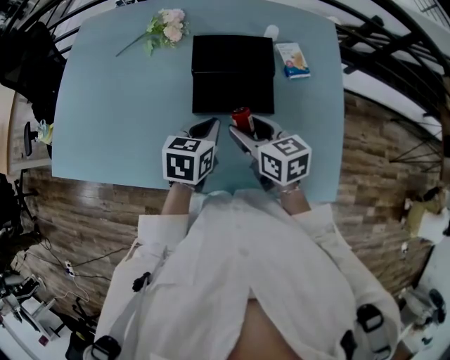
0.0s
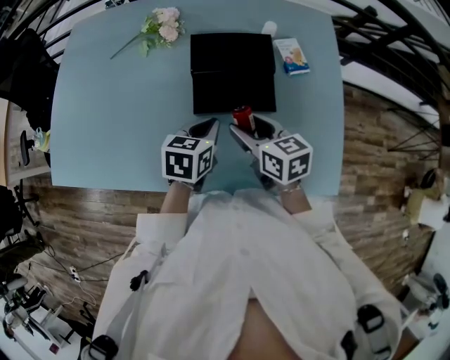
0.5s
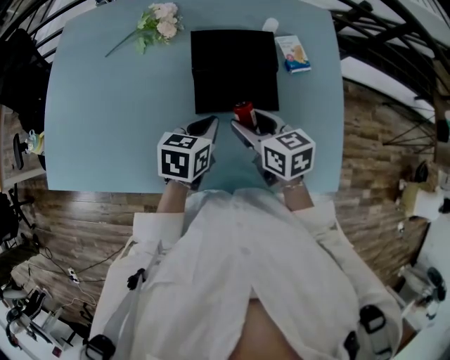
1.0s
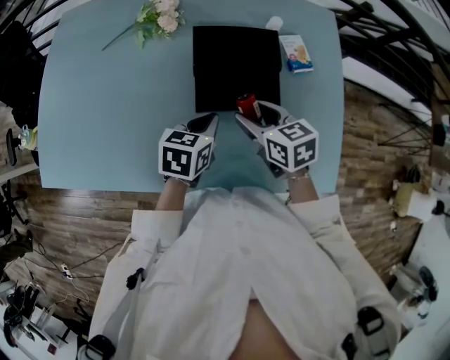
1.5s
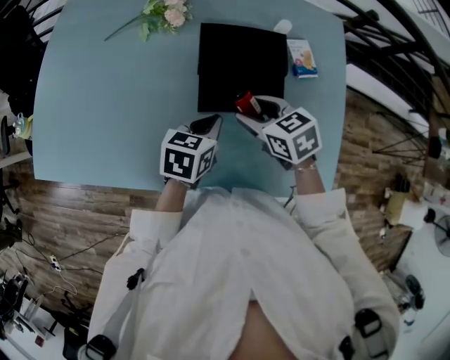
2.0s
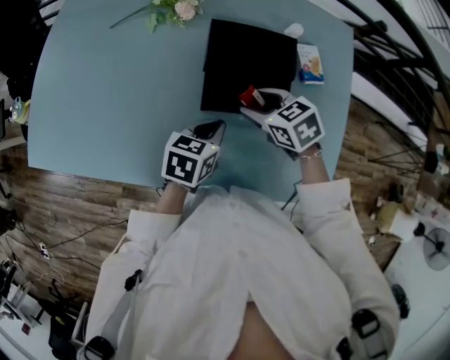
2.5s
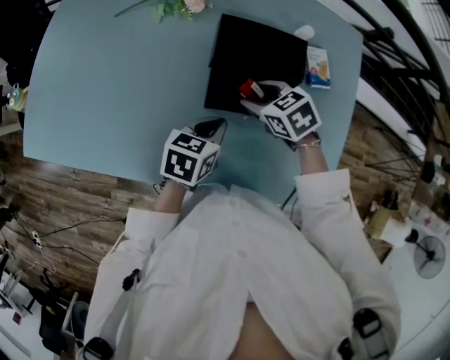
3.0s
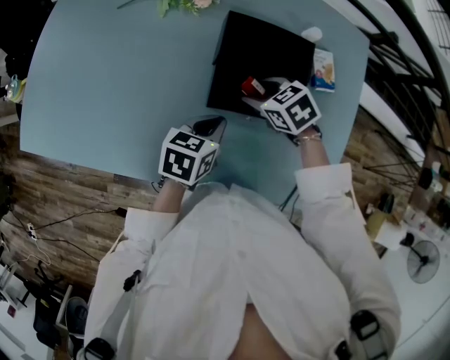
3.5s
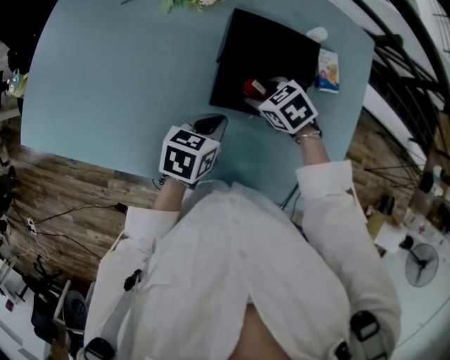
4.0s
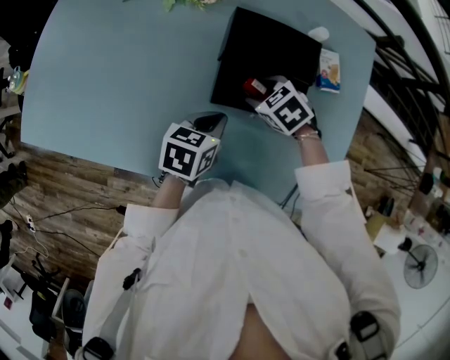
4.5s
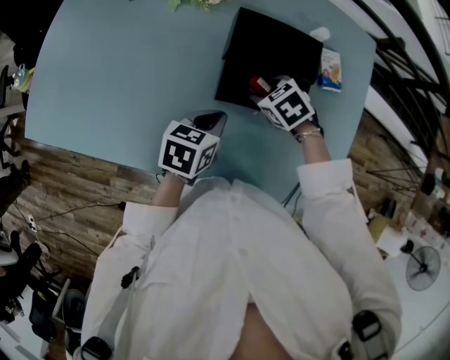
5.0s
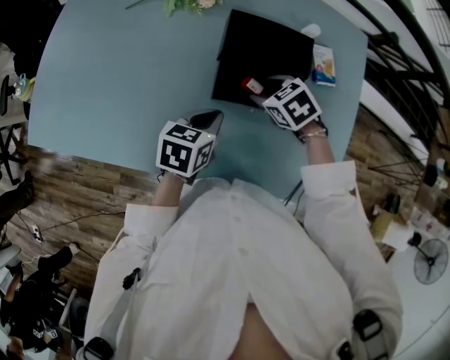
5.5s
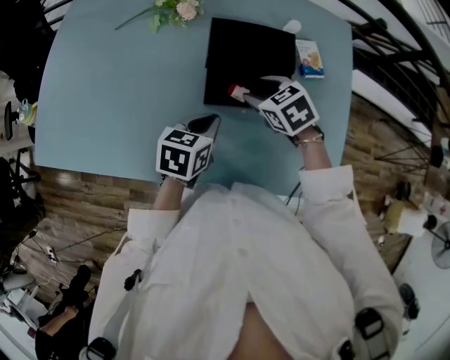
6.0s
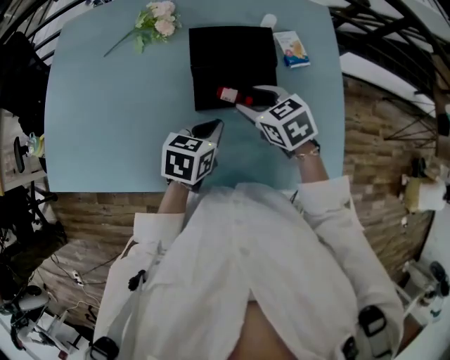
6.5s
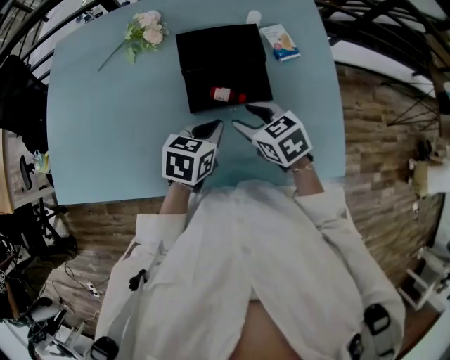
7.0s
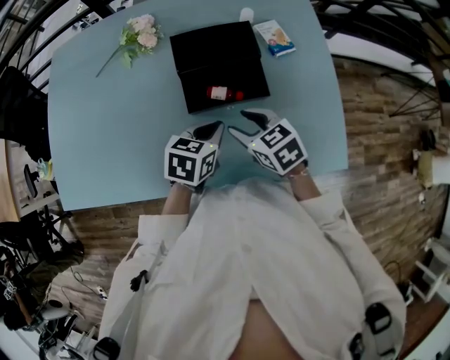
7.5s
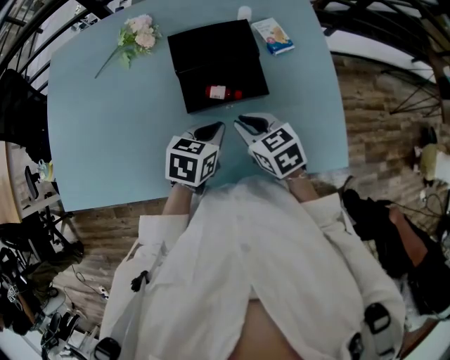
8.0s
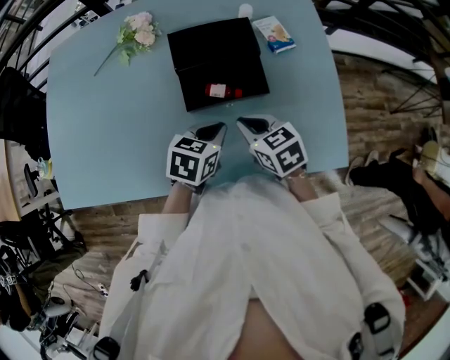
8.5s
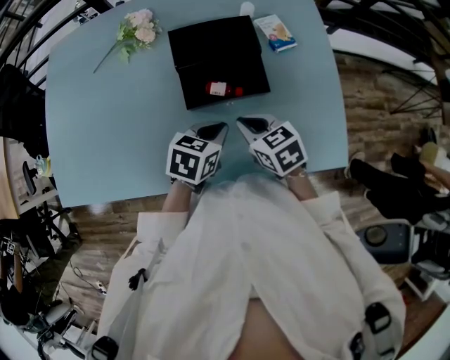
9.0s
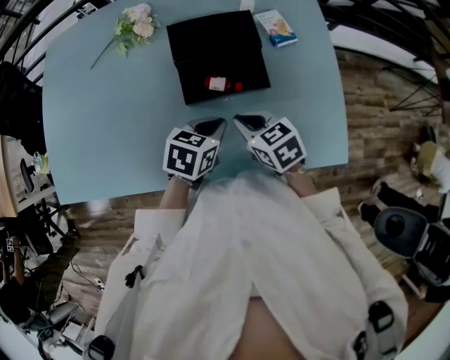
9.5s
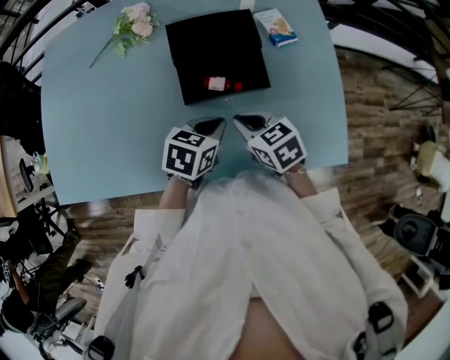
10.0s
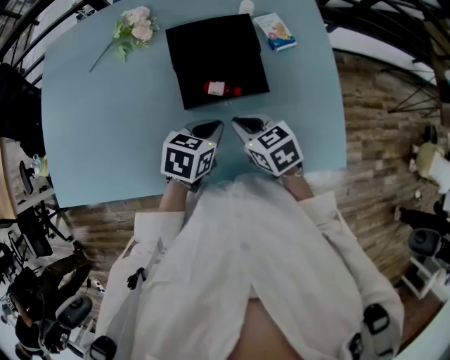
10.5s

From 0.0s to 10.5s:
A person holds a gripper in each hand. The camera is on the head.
From 0.0s to 2.0s: The right gripper shifts about 5 cm forward, and swivels some 30 degrees.
From 2.0s to 4.0s: The right gripper shifts about 10 cm downward and forward, and swivels some 30 degrees.
From 4.0s to 6.5s: The left gripper moves roughly 5 cm; the right gripper moves upward and backward, some 10 cm, and swivels about 30 degrees.
From 6.5s to 8.5s: The right gripper heads backward, covering approximately 10 cm, and closes.
From 8.5s to 10.5s: The grippers stay close to where they were, moving slightly.

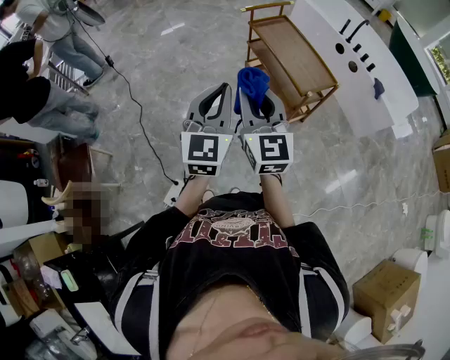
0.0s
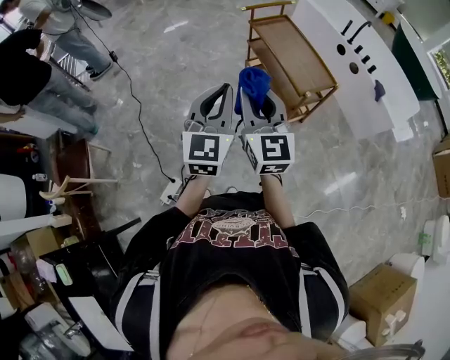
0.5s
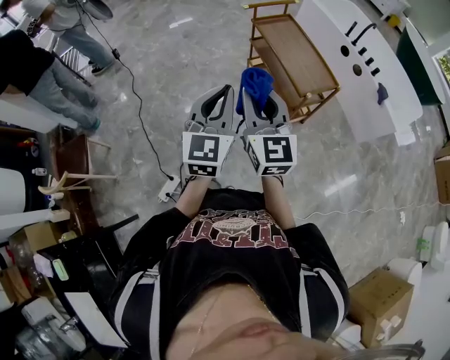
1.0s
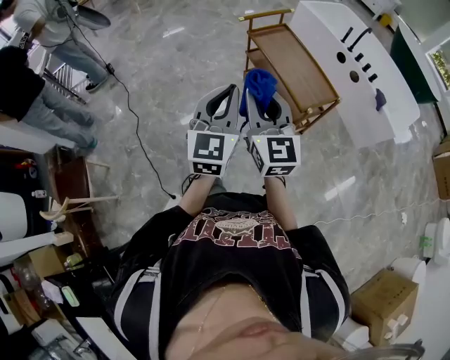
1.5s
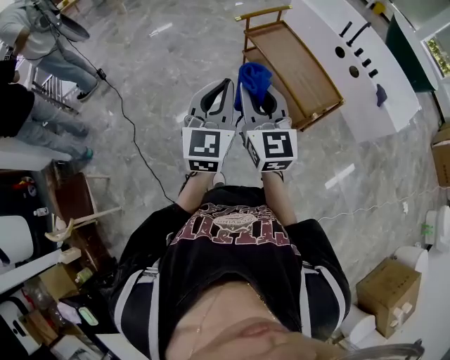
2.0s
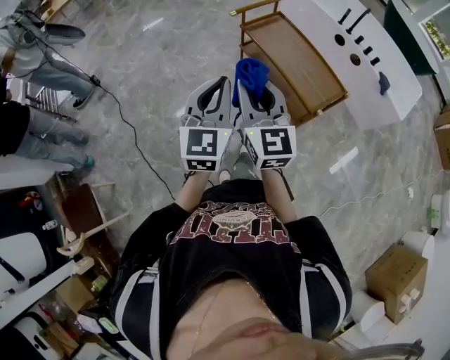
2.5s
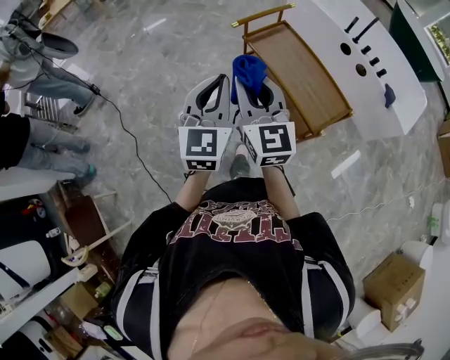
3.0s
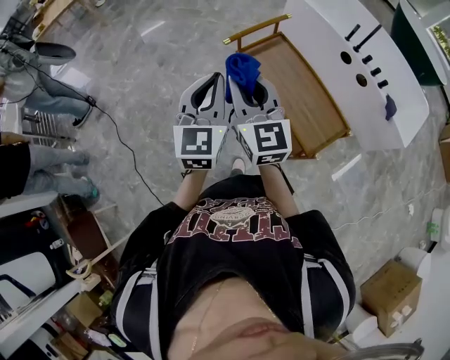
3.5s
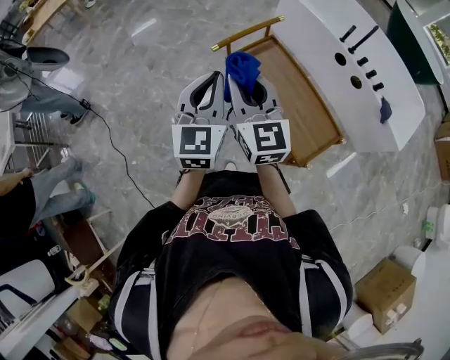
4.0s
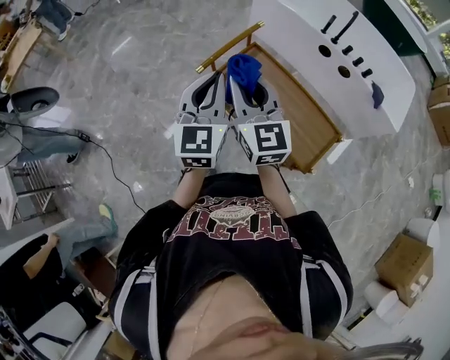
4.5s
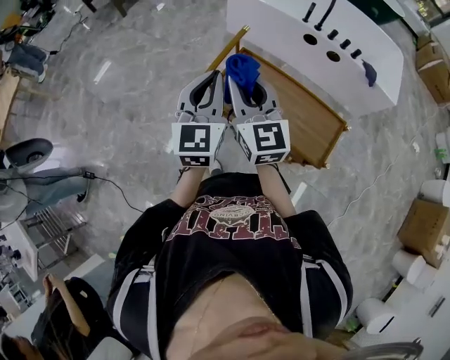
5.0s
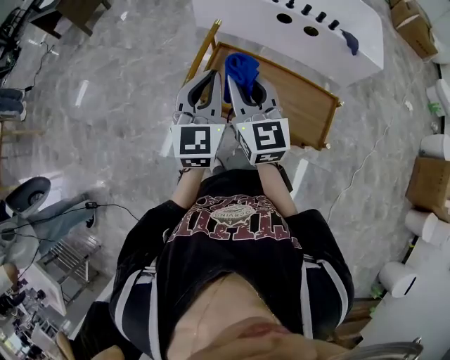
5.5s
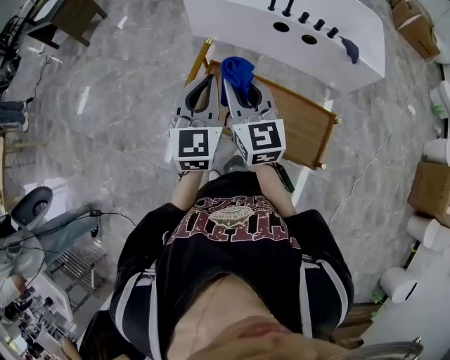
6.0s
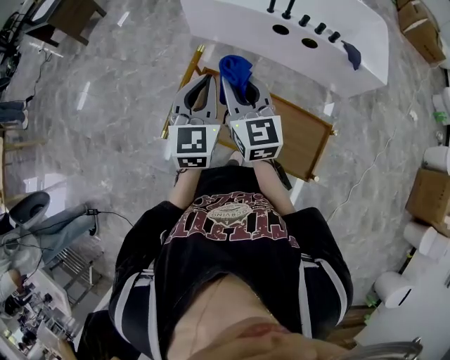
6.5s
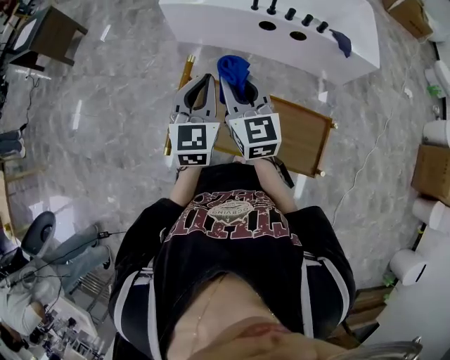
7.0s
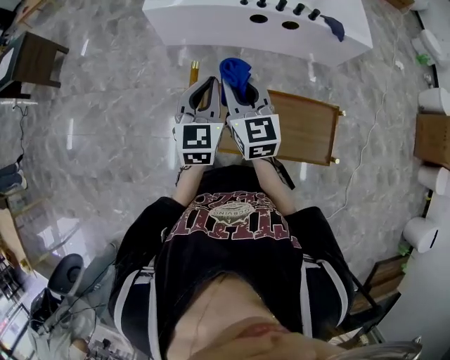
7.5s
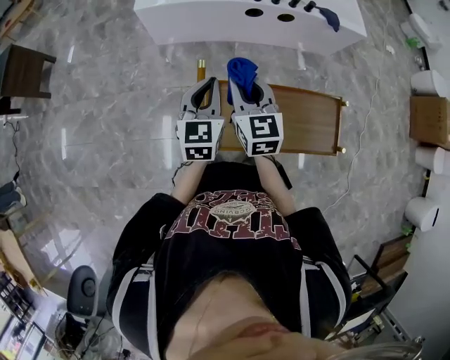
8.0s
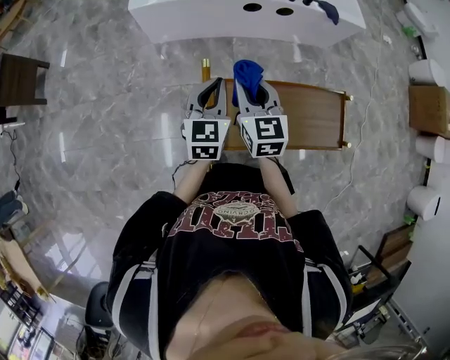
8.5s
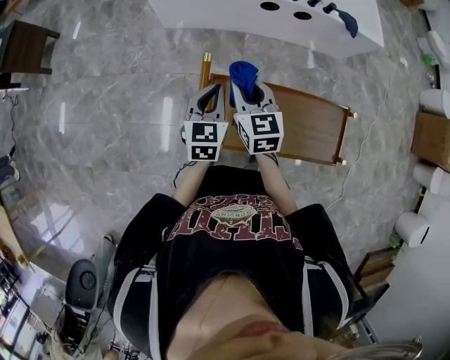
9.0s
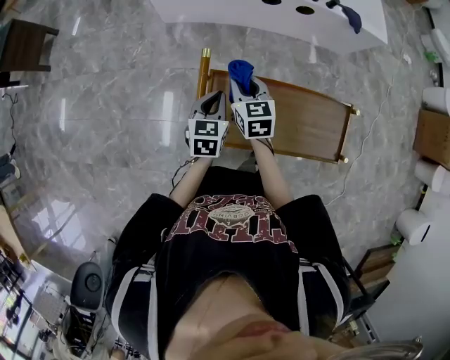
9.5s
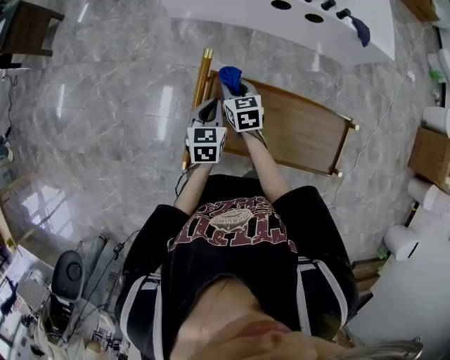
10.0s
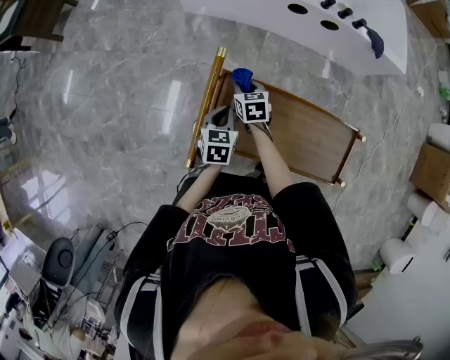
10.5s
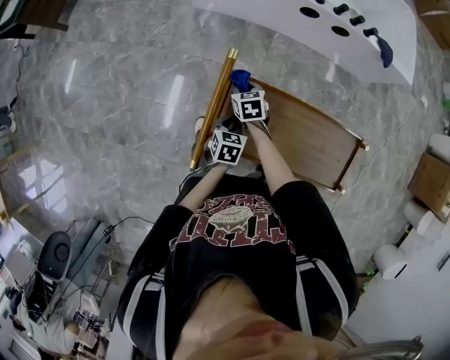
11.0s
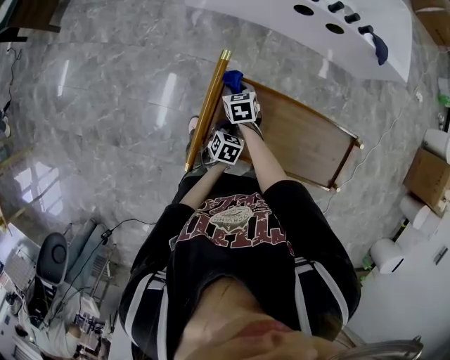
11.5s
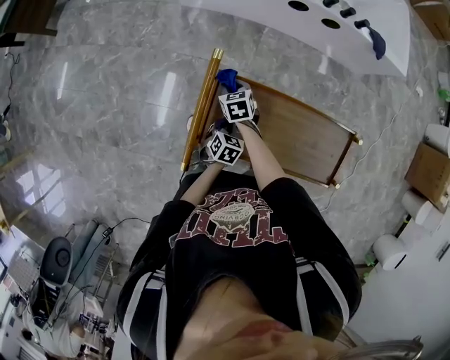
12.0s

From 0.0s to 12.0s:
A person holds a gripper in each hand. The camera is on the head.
From 0.0s to 2.0s: The two grippers go roughly 20 cm forward.
From 2.0s to 4.0s: The two grippers go roughly 35 cm forward.
From 4.0s to 6.0s: The right gripper ends up approximately 30 cm from where it was, and turns by some 30 degrees. Meanwhile the left gripper changes place by about 30 cm, and swivels approximately 30 degrees.
From 6.0s to 8.0s: The grippers both shift forward and downward by approximately 20 cm. The right gripper changes its angle by roughly 30 degrees. The left gripper swivels about 20 degrees.
From 8.0s to 10.0s: Both grippers travel together downward, roughly 20 cm. The left gripper turns by some 20 degrees. The right gripper rotates some 30 degrees.
From 10.0s to 12.0s: The left gripper shifts approximately 20 cm downward and backward, and swivels approximately 30 degrees. Meanwhile the right gripper moves downward, about 10 cm.

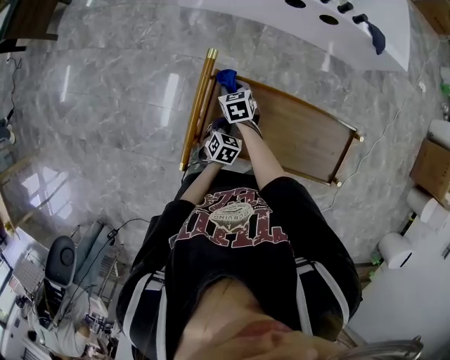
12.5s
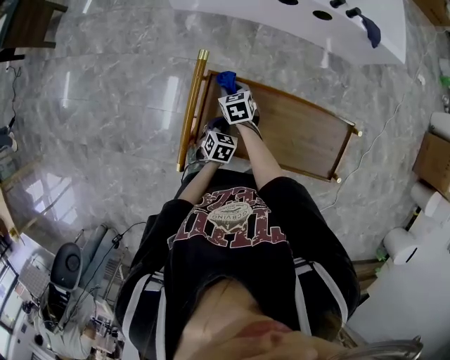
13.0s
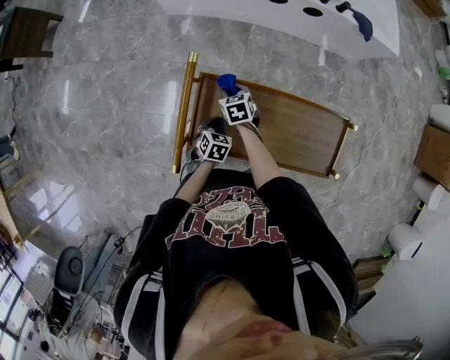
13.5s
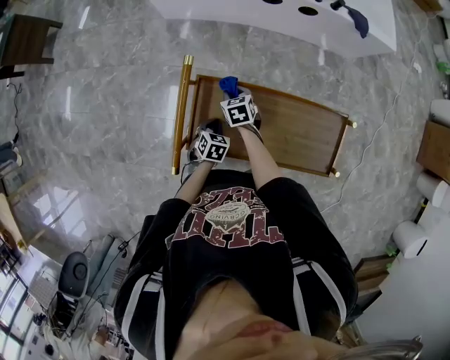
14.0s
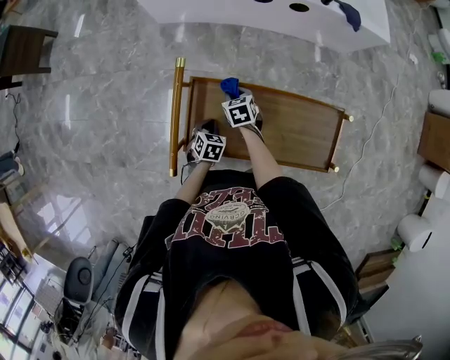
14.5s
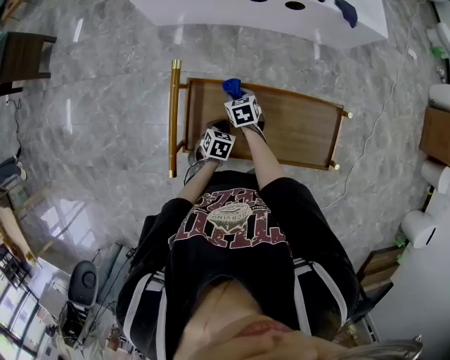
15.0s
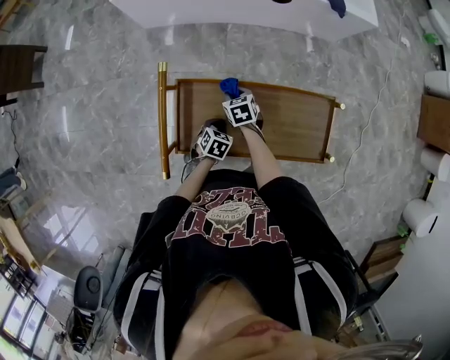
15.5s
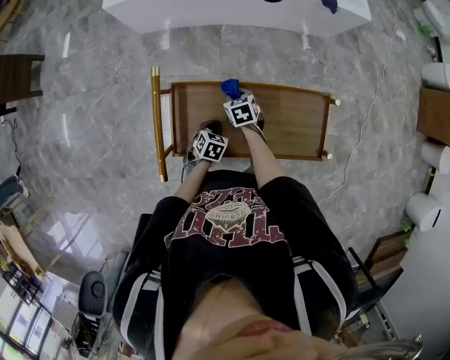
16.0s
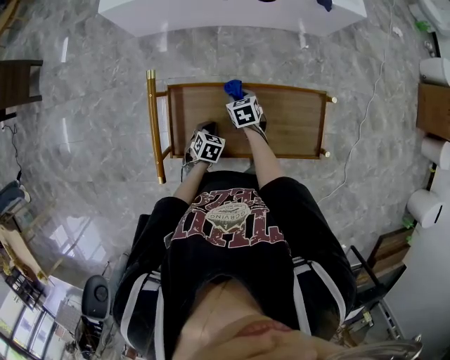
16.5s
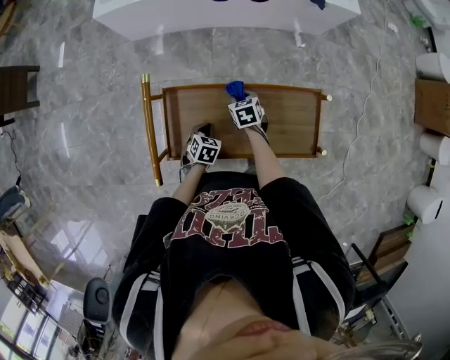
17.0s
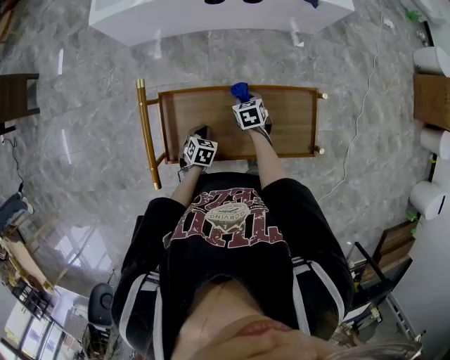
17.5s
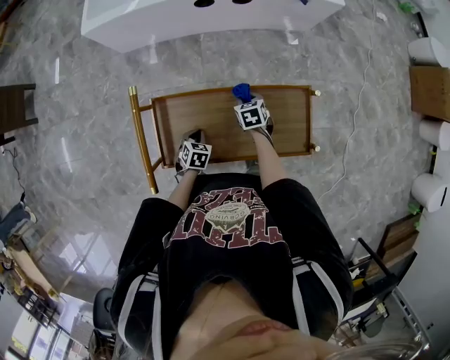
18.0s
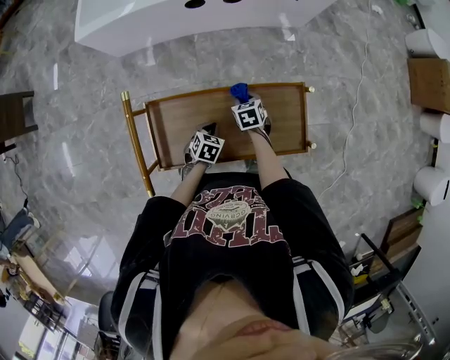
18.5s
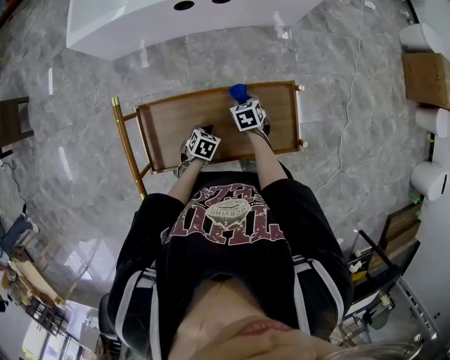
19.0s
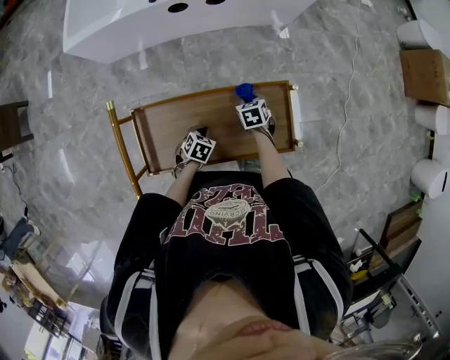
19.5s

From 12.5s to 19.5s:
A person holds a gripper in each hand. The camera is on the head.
From 12.5s to 14.5s: The right gripper heads to the right, covering roughly 10 cm.
From 14.5s to 16.0s: Both grippers move to the right, some 10 cm.
From 16.0s to 17.5s: The right gripper moves to the right, roughly 10 cm.
From 17.5s to 19.5s: Both grippers move to the right, roughly 15 cm.
